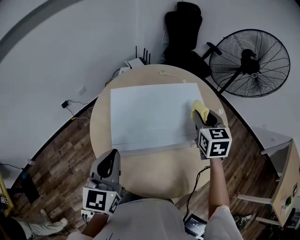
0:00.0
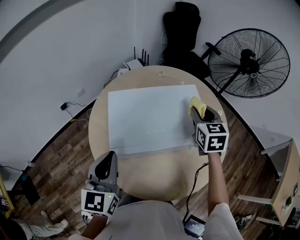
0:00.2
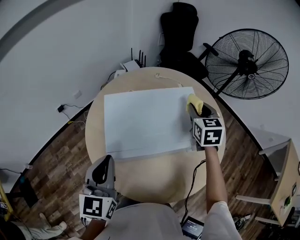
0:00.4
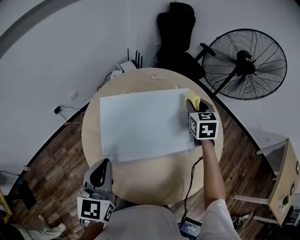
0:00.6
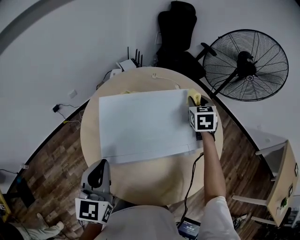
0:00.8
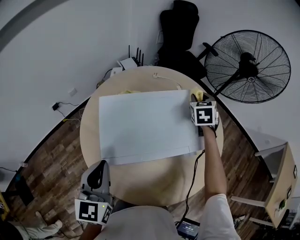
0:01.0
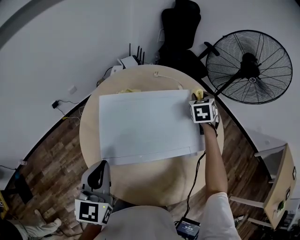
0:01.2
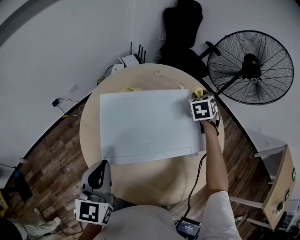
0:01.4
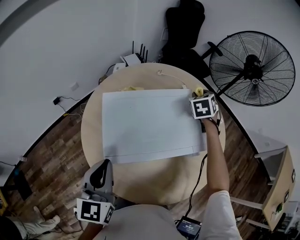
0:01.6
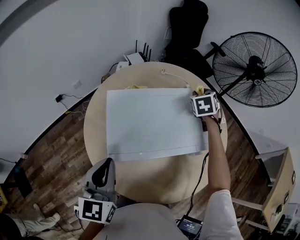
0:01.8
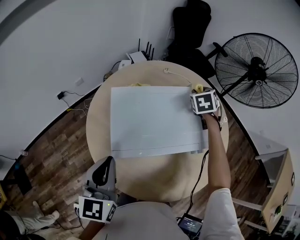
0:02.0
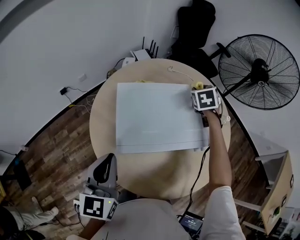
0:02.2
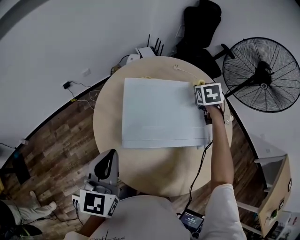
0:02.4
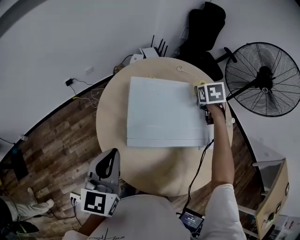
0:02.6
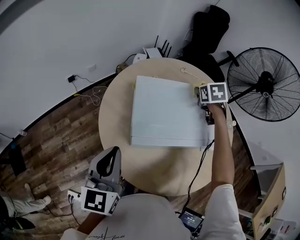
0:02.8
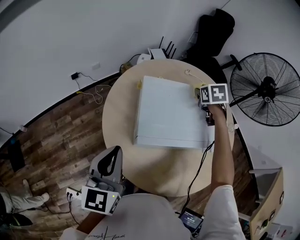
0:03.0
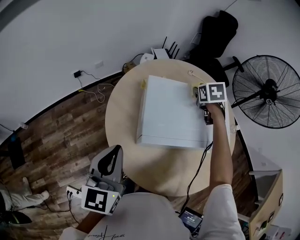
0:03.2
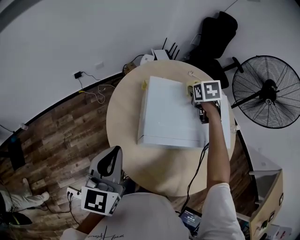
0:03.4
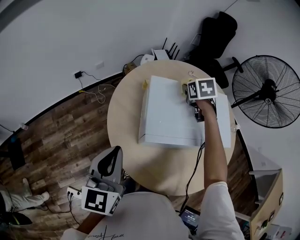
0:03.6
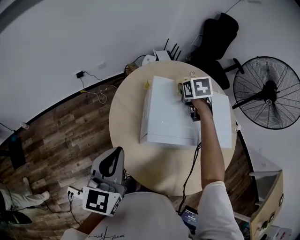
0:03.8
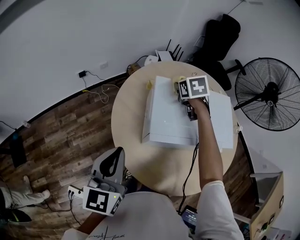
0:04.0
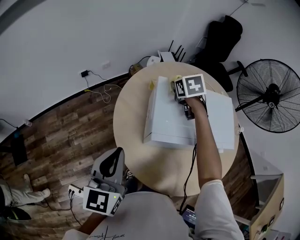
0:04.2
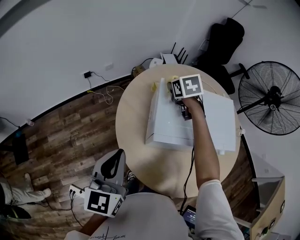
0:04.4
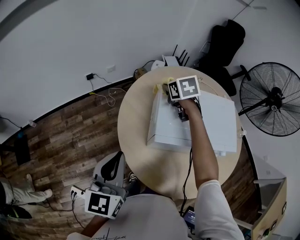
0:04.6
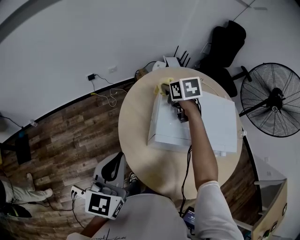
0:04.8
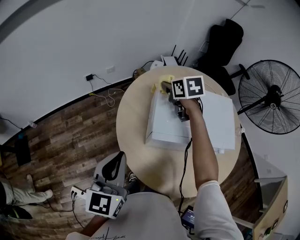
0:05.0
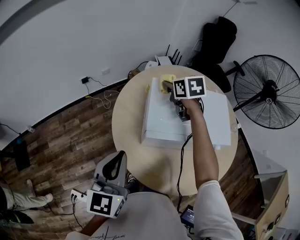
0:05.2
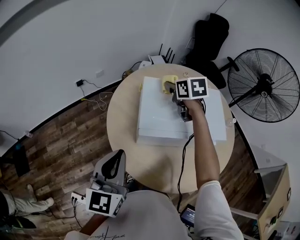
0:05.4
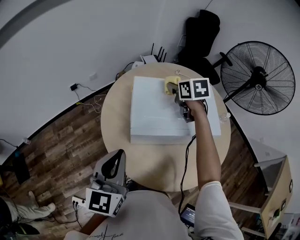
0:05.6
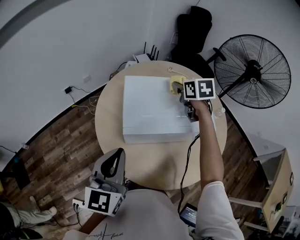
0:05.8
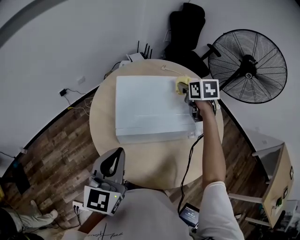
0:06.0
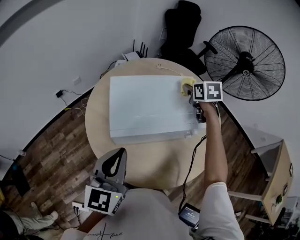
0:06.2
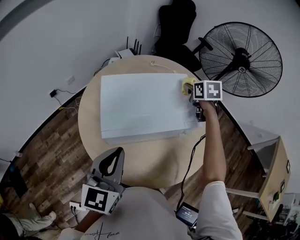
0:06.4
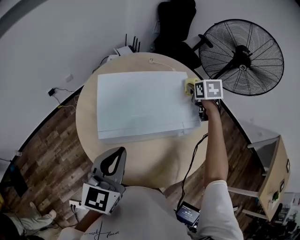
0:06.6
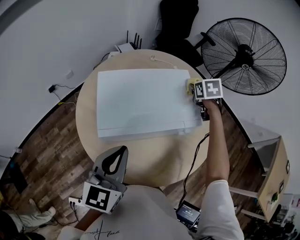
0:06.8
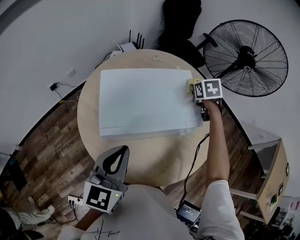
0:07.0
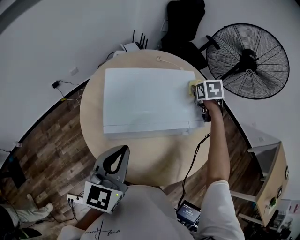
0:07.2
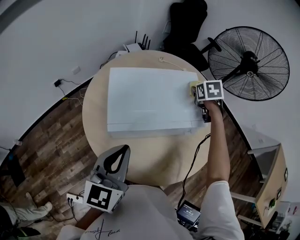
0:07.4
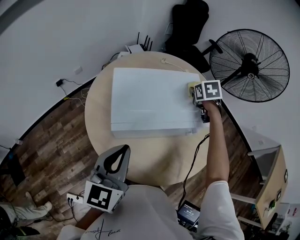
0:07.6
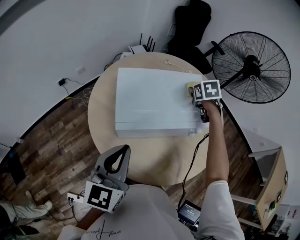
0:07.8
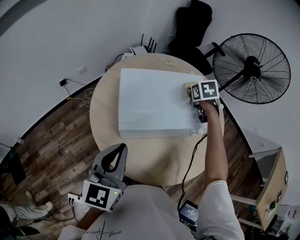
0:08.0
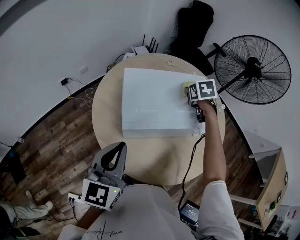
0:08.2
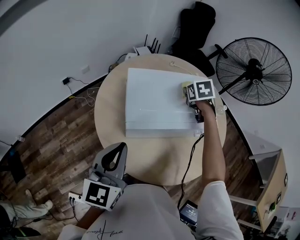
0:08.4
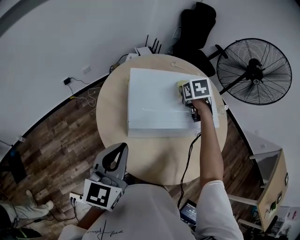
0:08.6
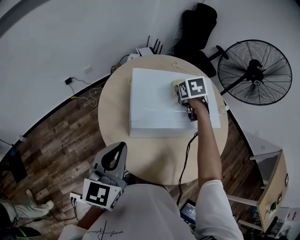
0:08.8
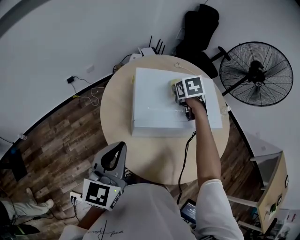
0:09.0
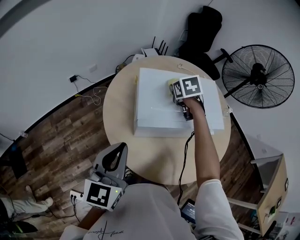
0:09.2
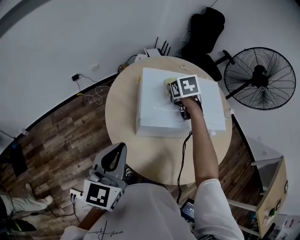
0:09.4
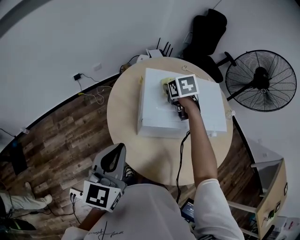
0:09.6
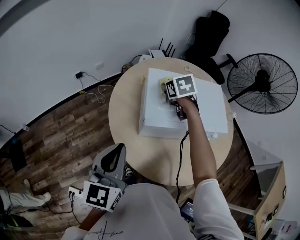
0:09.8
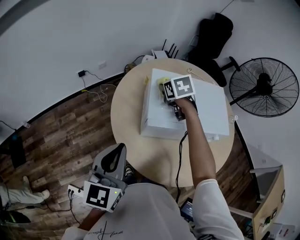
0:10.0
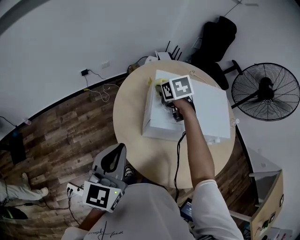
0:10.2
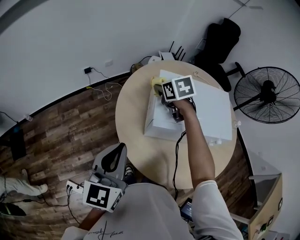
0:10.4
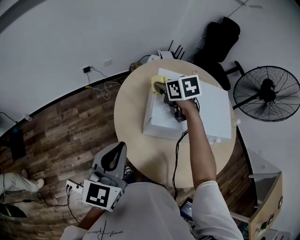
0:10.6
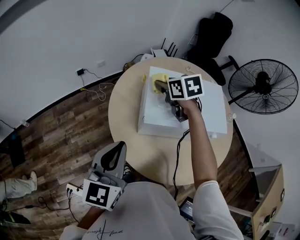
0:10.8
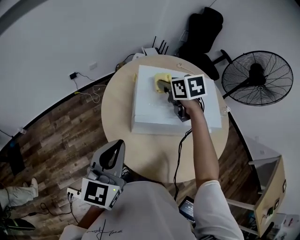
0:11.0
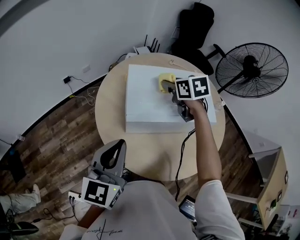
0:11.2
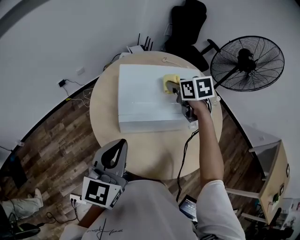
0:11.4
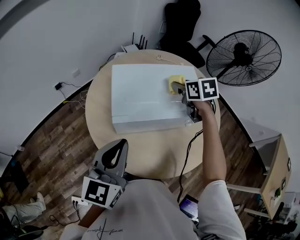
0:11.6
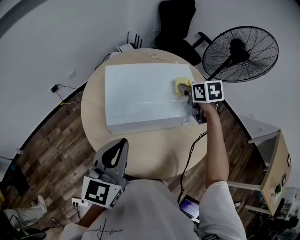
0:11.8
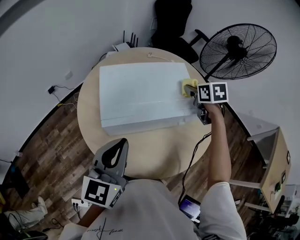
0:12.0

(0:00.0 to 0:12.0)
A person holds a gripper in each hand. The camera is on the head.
0:00.0 - 0:01.6: The right gripper heads forward, covering about 20 cm, and rotates about 30 degrees.
0:01.6 - 0:03.0: The right gripper is displaced to the left by about 15 cm, and turns by about 20 degrees. The left gripper goes roughly 10 cm to the left and backward.
0:03.0 - 0:04.4: The left gripper ends up approximately 5 cm from where it was. The right gripper shifts some 20 cm to the left.
0:04.4 - 0:06.0: The right gripper goes some 25 cm to the right, and changes its angle by some 20 degrees, while the left gripper is displaced to the right by approximately 15 cm.
0:06.0 - 0:07.6: The right gripper moves to the right and downward, some 10 cm.
0:07.6 - 0:09.0: The left gripper heads to the left, covering approximately 10 cm, while the right gripper shifts some 20 cm to the left.
0:09.0 - 0:10.4: The right gripper moves to the left, approximately 20 cm, and swivels about 20 degrees, while the left gripper is displaced to the left by approximately 5 cm.
0:10.4 - 0:12.0: The left gripper changes place by some 20 cm, and turns by some 20 degrees; the right gripper shifts by some 40 cm, and swivels some 30 degrees.

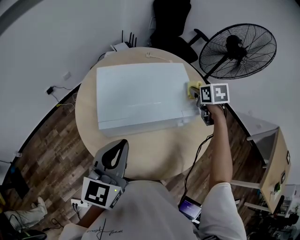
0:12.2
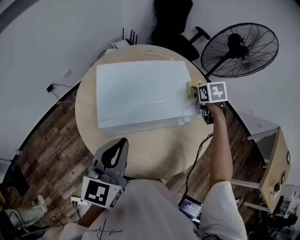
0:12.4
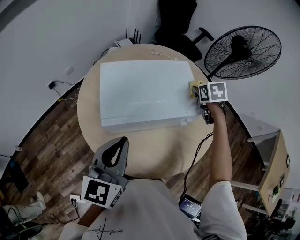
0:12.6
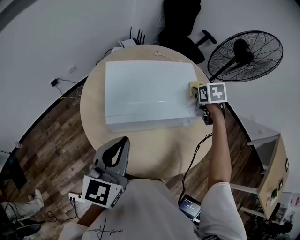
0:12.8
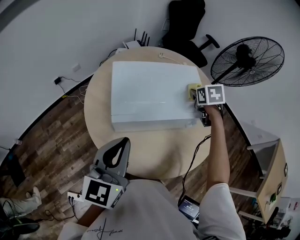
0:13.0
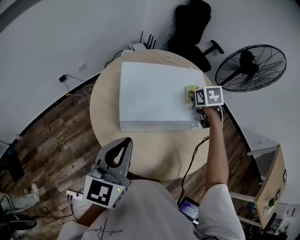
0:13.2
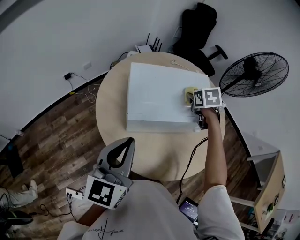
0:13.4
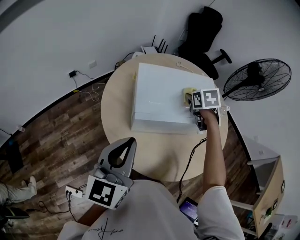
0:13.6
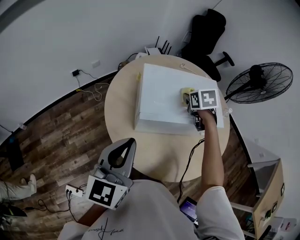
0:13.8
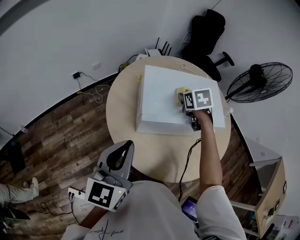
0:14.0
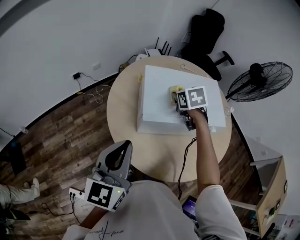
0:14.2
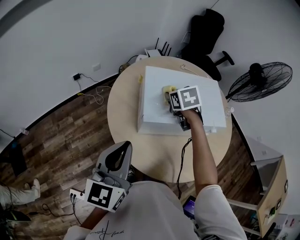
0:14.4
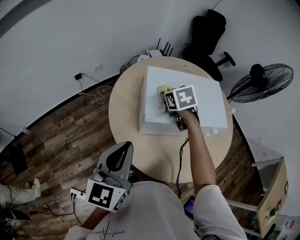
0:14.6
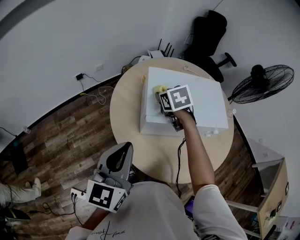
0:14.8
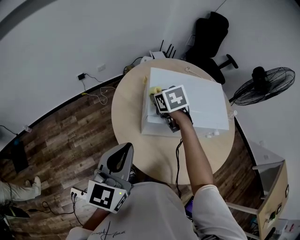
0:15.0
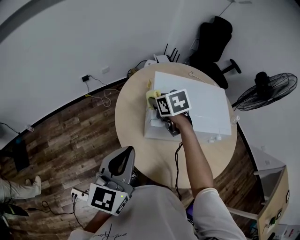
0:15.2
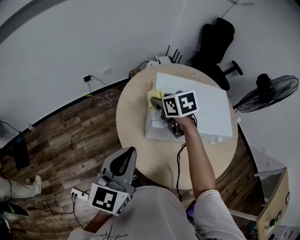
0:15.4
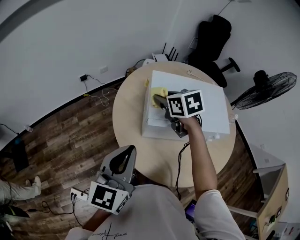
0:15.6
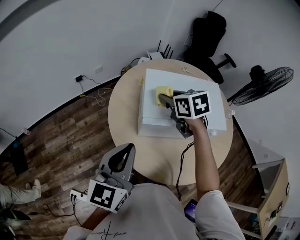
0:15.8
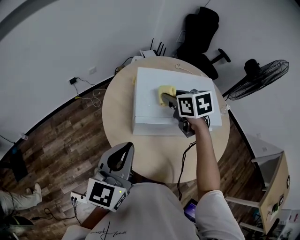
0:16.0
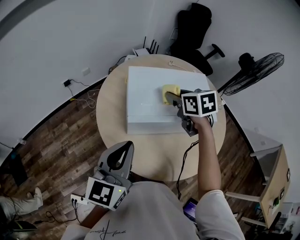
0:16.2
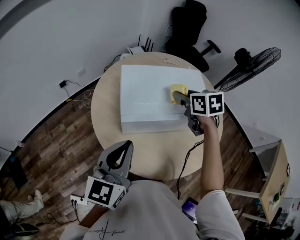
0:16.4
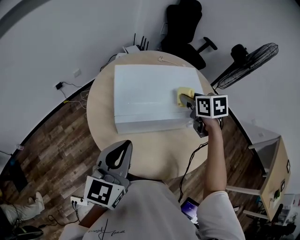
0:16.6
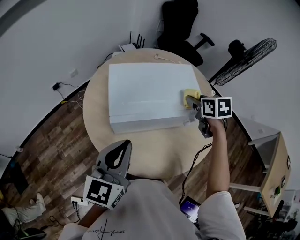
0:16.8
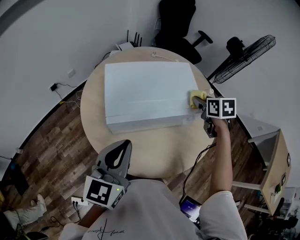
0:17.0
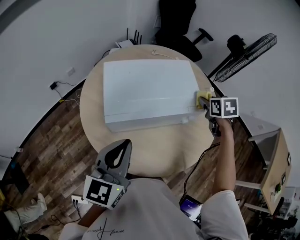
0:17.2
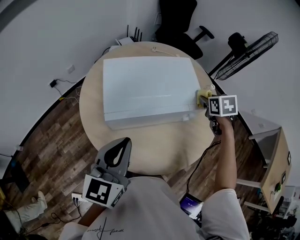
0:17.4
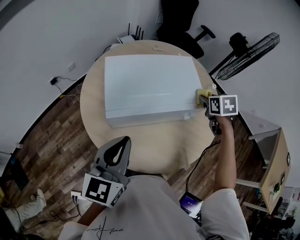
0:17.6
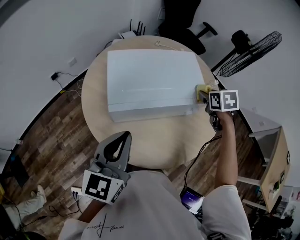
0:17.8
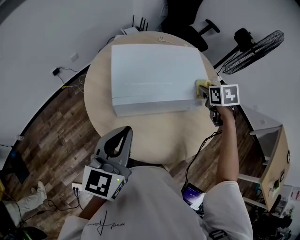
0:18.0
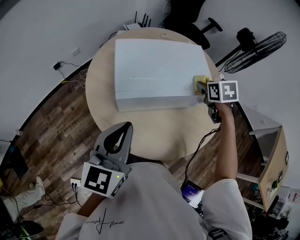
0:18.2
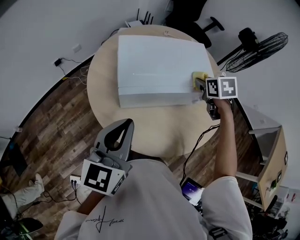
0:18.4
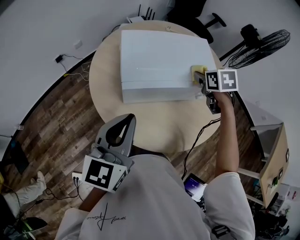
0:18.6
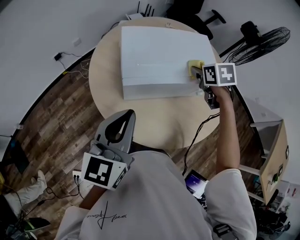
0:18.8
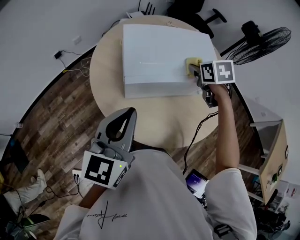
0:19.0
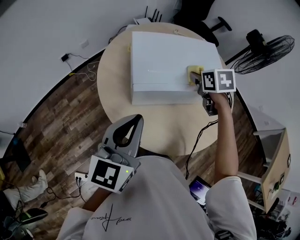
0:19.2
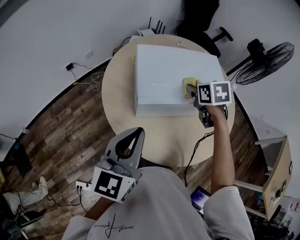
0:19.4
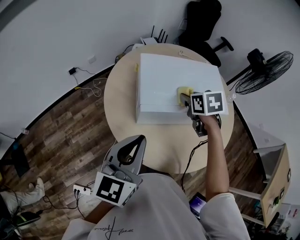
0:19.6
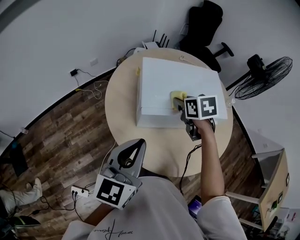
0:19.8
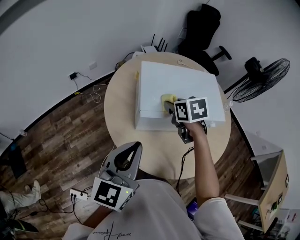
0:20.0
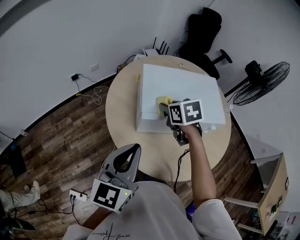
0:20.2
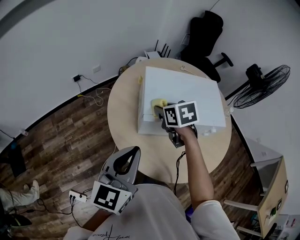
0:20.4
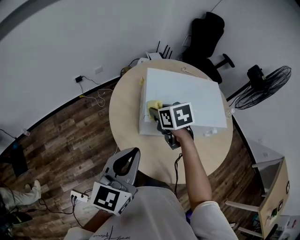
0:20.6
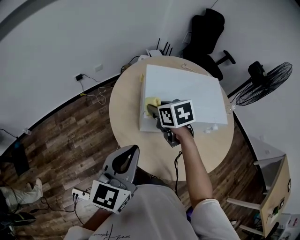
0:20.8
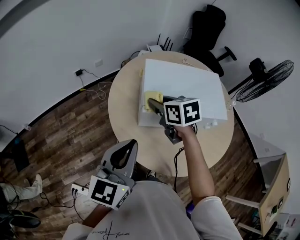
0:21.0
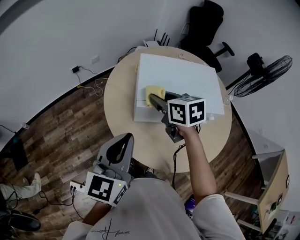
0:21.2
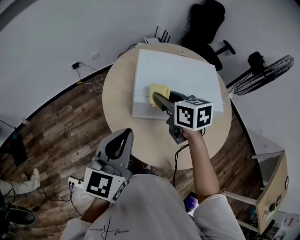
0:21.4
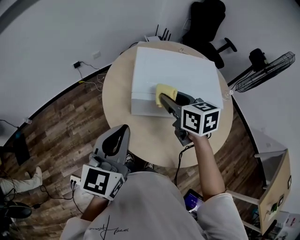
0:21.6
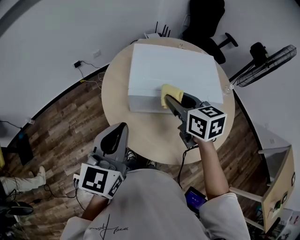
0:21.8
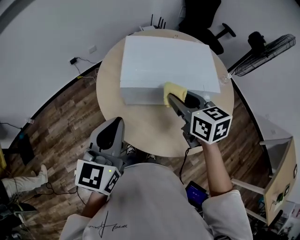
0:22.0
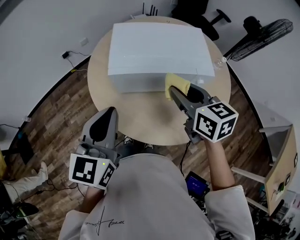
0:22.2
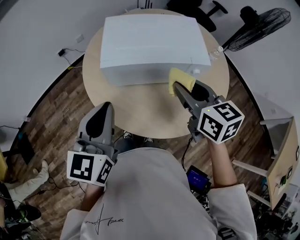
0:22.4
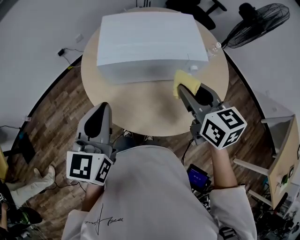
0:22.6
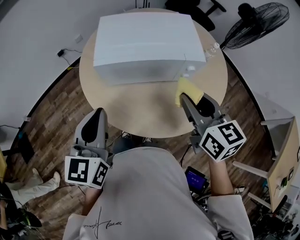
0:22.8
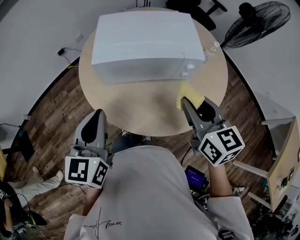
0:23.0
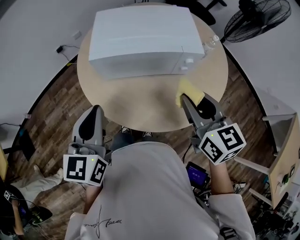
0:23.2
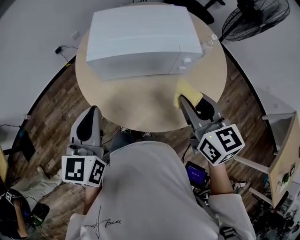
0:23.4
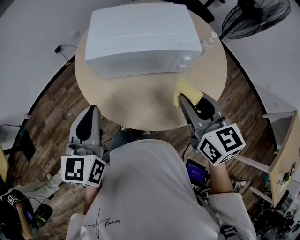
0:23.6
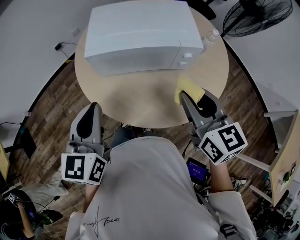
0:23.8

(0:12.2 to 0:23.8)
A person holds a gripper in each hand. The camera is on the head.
0:12.2 - 0:13.6: The right gripper travels to the left by about 20 cm; the left gripper heads to the left and backward, covering approximately 10 cm.
0:13.6 - 0:15.0: The right gripper shifts roughly 25 cm to the left. The left gripper goes approximately 5 cm to the left.
0:15.0 - 0:16.6: The right gripper travels to the right by some 25 cm, and turns by about 20 degrees, while the left gripper travels to the right by approximately 10 cm.
0:16.6 - 0:18.0: The right gripper moves to the right, about 10 cm.
0:18.0 - 0:19.4: The left gripper travels to the left by some 5 cm. Meanwhile the right gripper shifts some 15 cm to the left.
0:19.4 - 0:21.0: The right gripper is displaced to the left by approximately 20 cm, and turns by some 20 degrees.
0:21.0 - 0:22.4: The left gripper travels to the right by some 10 cm. Meanwhile the right gripper goes approximately 30 cm to the right and backward.
0:22.4 - 0:23.8: The right gripper goes about 10 cm backward and to the right.
